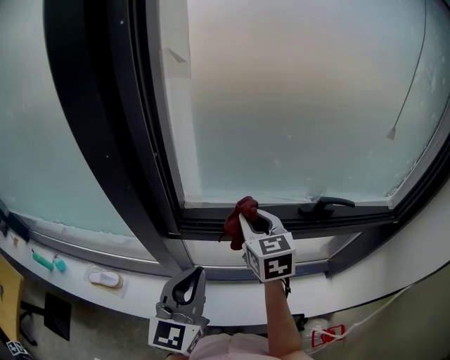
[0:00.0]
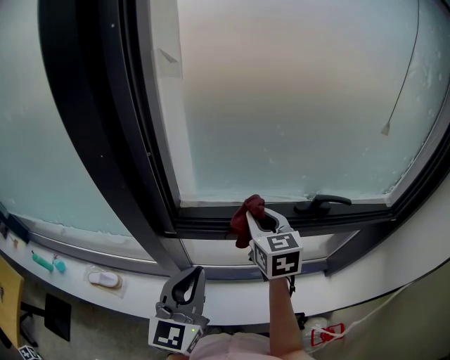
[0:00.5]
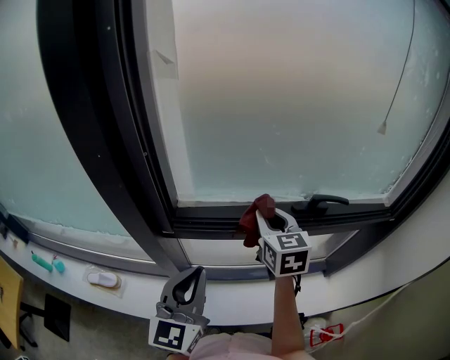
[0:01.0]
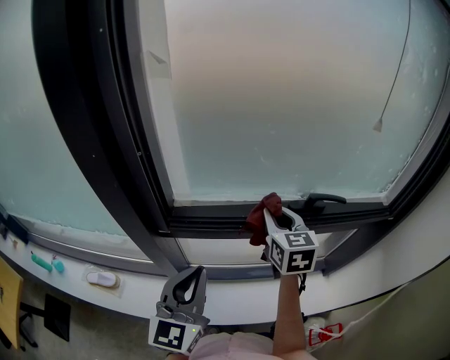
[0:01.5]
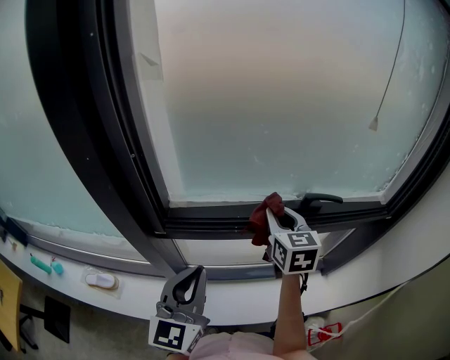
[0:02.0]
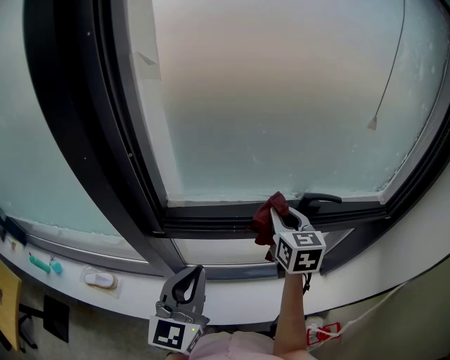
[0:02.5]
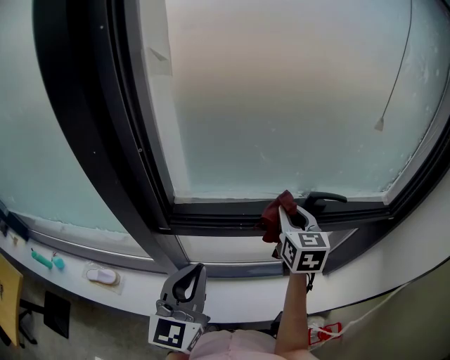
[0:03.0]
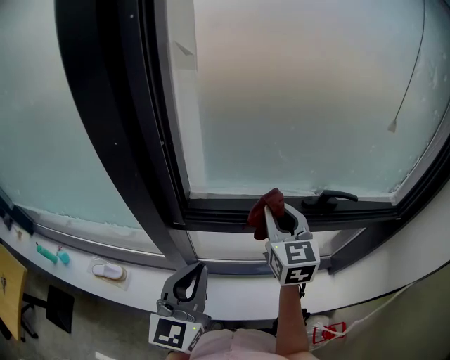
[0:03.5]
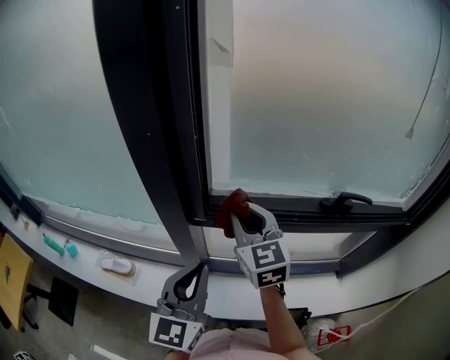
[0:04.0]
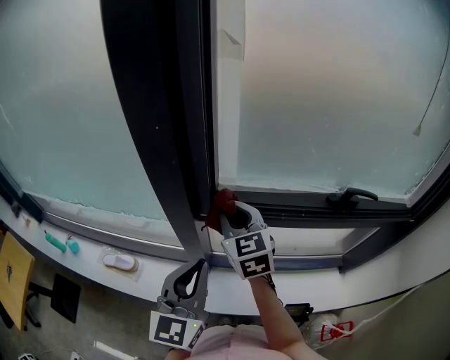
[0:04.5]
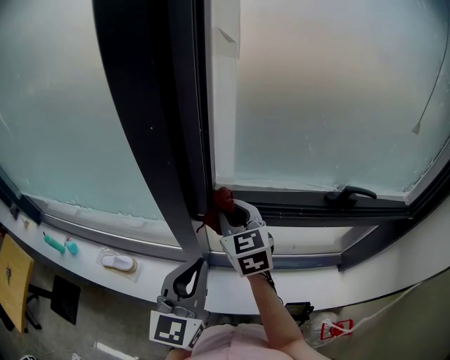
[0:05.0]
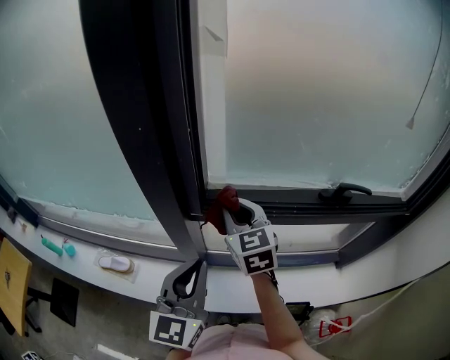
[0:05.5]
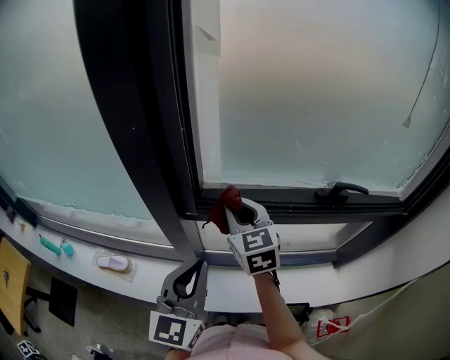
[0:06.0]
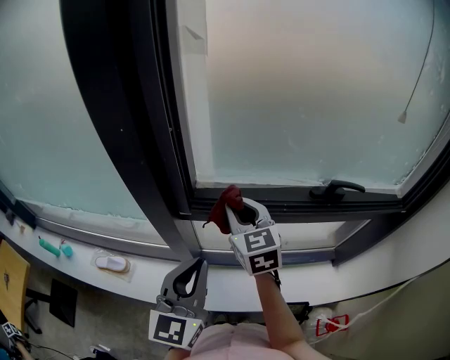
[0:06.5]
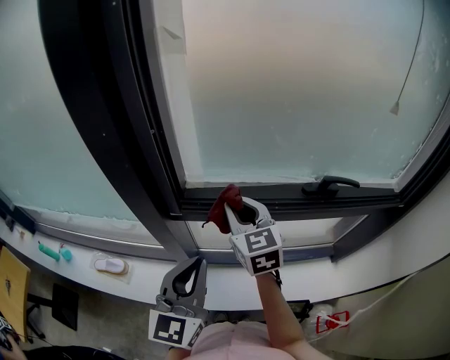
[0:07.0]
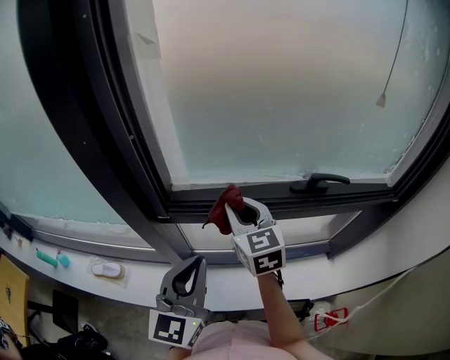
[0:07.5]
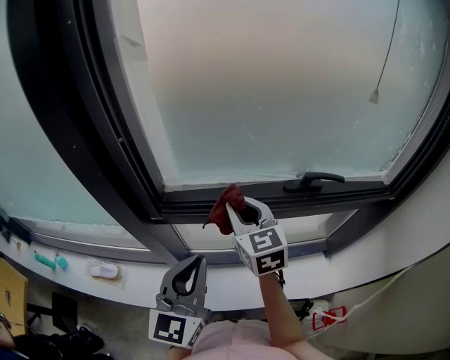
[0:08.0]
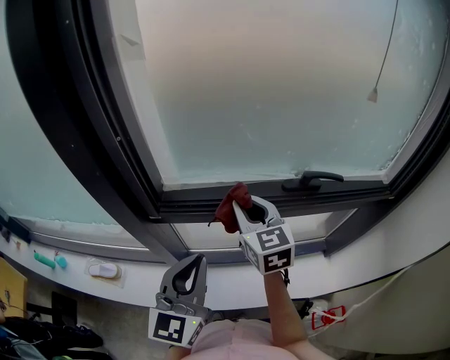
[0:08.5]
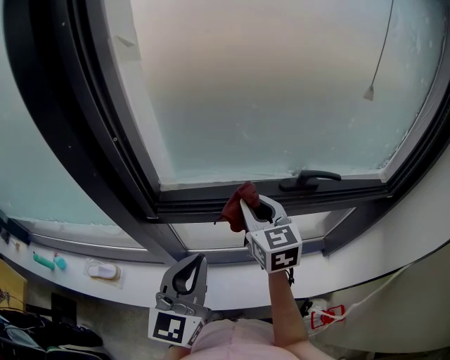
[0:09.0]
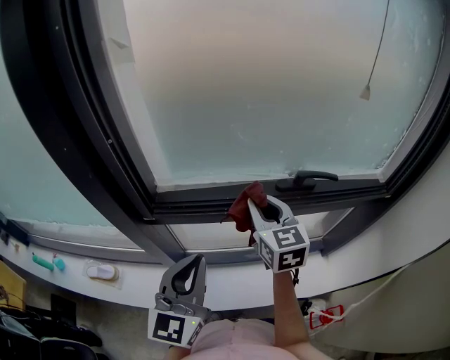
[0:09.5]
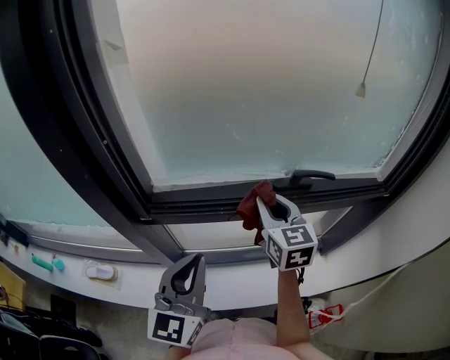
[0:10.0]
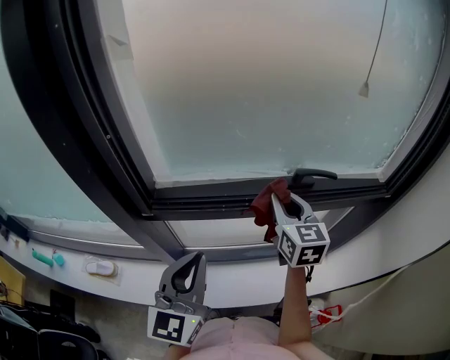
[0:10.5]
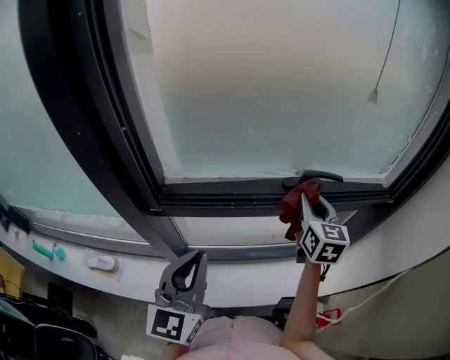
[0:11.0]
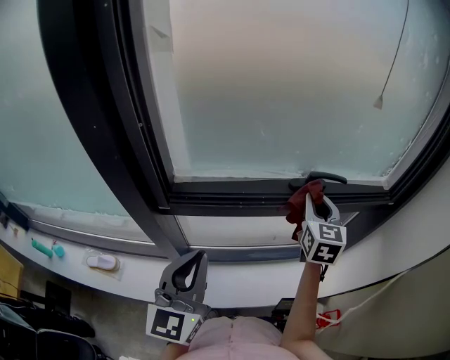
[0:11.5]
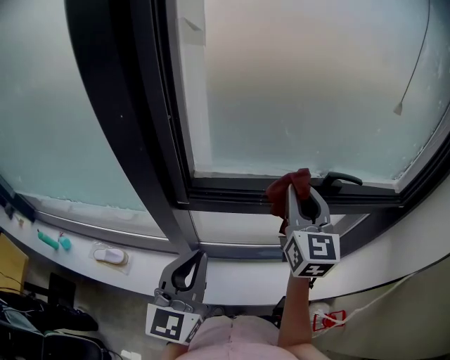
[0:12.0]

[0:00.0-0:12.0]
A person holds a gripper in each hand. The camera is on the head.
0:00.0 to 0:02.0: The right gripper is displaced to the right by roughly 10 cm.
0:02.0 to 0:04.0: The right gripper moves to the left, about 20 cm, and changes its angle by roughly 20 degrees, while the left gripper goes roughly 10 cm to the left.
0:04.0 to 0:06.0: The right gripper changes place by about 5 cm.
0:06.0 to 0:08.0: The grippers both shift to the right by some 10 cm.
0:08.0 to 0:10.0: The right gripper heads to the right, covering approximately 10 cm.
0:10.0 to 0:12.0: The right gripper travels upward by some 10 cm, and goes to the right and returns, approximately 10 cm each way. Meanwhile the left gripper is displaced to the left by approximately 10 cm.

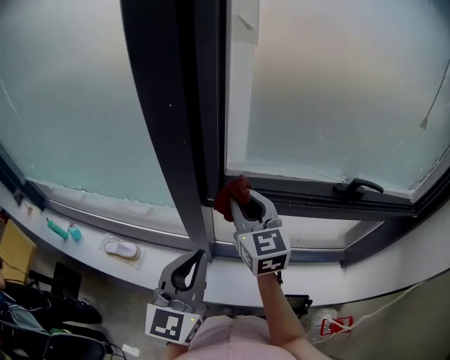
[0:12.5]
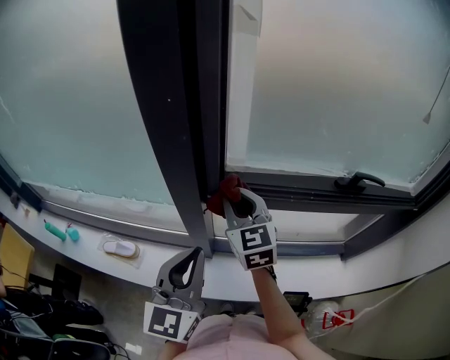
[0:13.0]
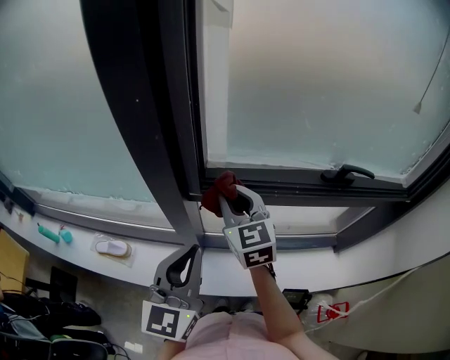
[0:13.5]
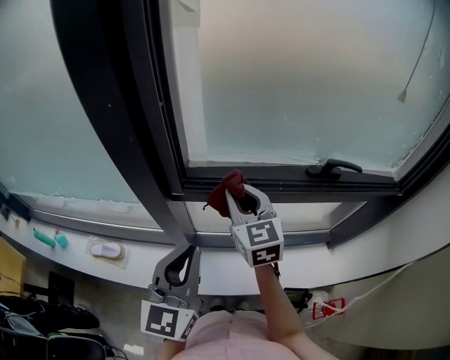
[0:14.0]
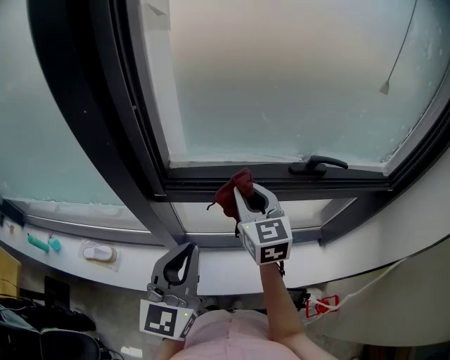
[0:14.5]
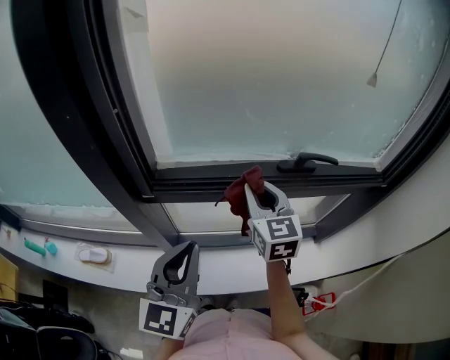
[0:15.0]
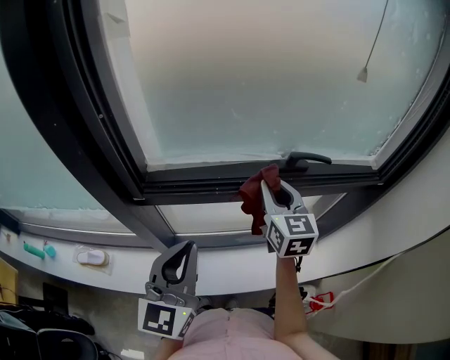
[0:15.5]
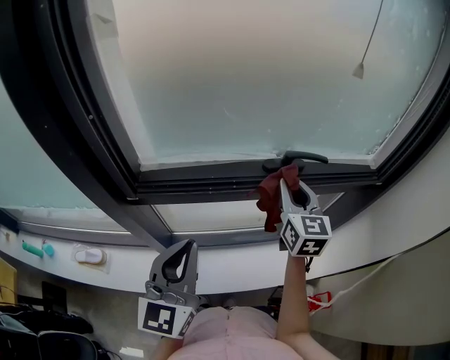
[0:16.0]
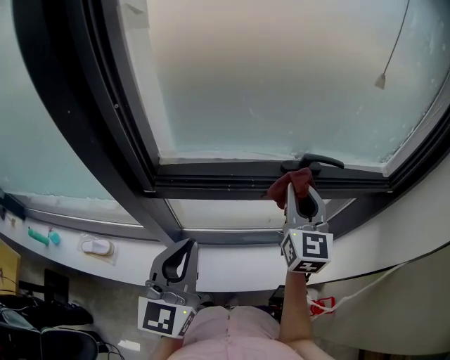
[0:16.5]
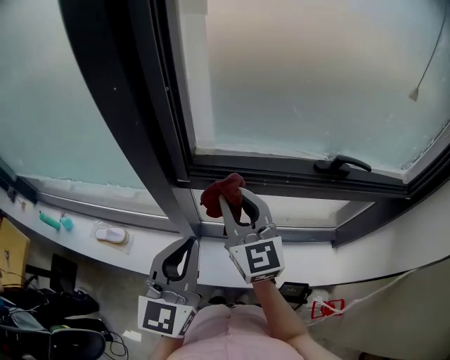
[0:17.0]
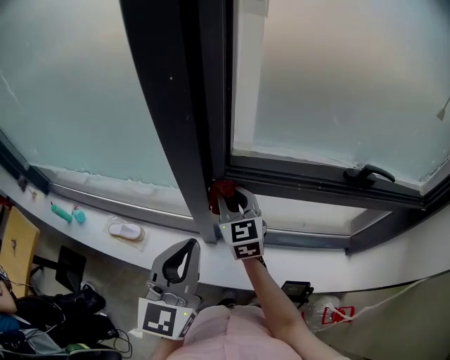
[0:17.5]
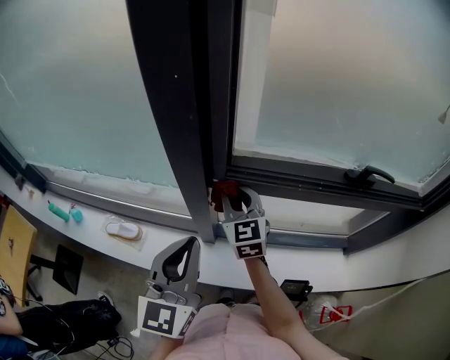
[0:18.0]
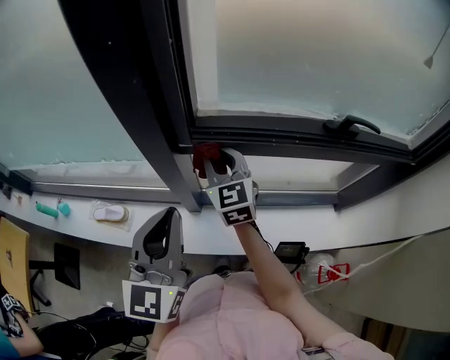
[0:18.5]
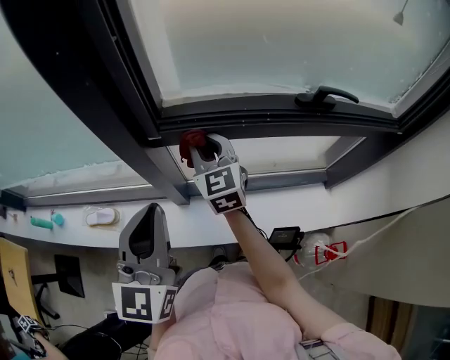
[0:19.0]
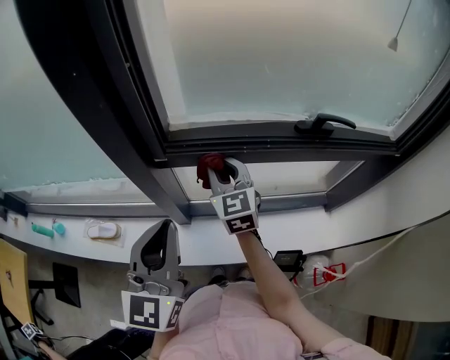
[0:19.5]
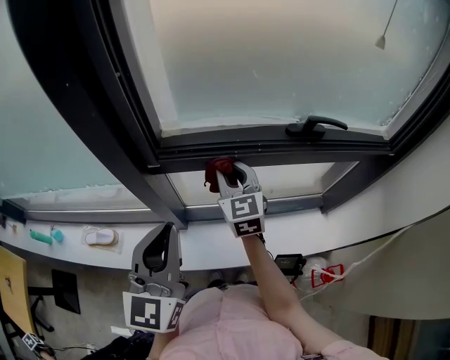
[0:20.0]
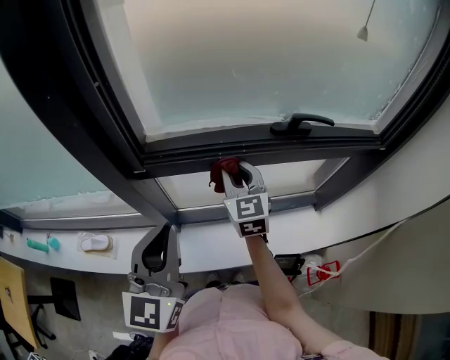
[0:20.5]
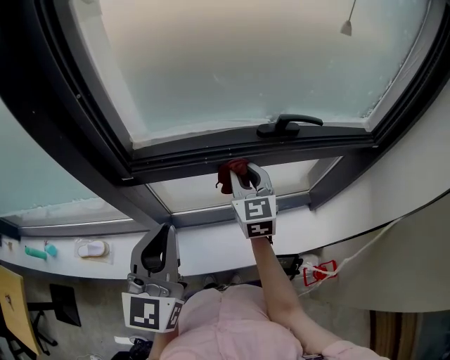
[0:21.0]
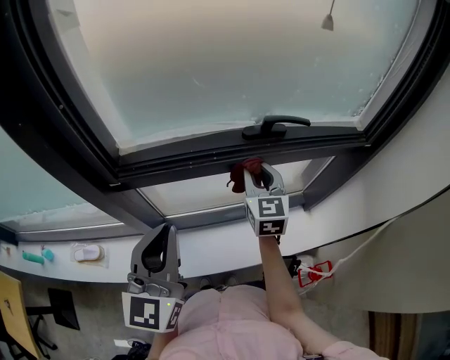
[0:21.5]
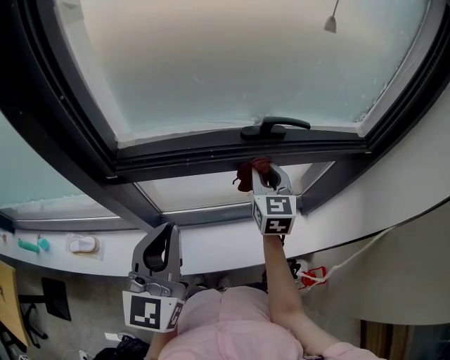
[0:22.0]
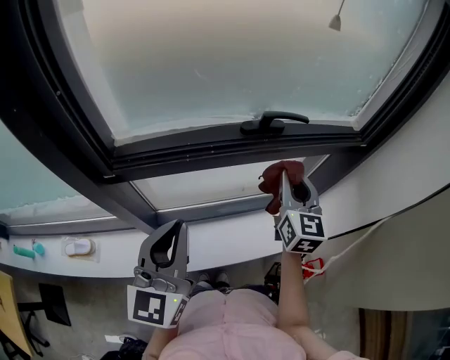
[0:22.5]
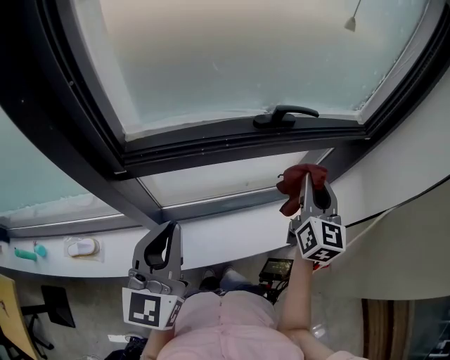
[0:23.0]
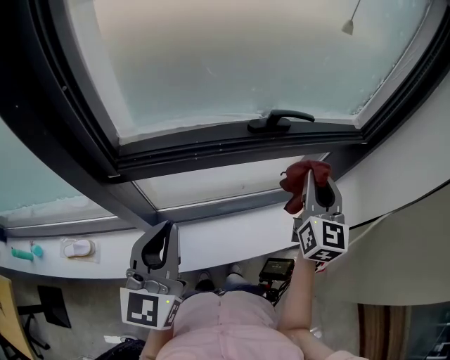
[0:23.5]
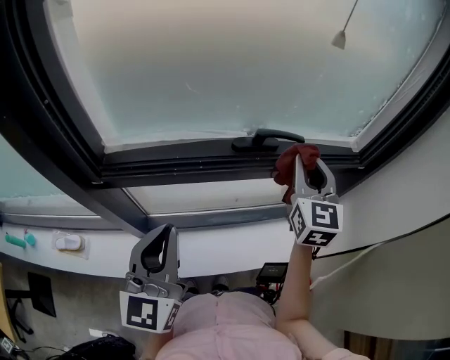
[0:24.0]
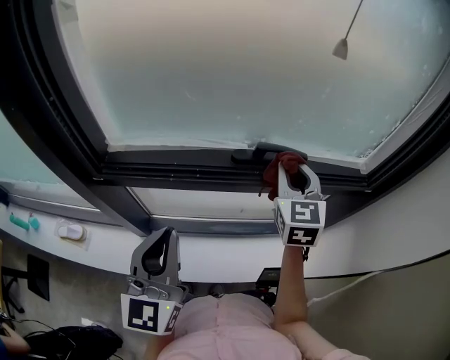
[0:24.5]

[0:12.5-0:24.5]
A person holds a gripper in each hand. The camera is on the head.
0:12.5 to 0:14.5: The right gripper shifts roughly 15 cm to the right, while the left gripper heads to the right, covering about 10 cm.
0:14.5 to 0:16.5: The right gripper shifts about 15 cm to the right.
0:16.5 to 0:18.5: The right gripper shifts approximately 30 cm to the left, and changes its angle by roughly 30 degrees. Meanwhile the left gripper shifts roughly 15 cm to the left.
0:18.5 to 0:20.5: The right gripper heads to the right, covering roughly 20 cm; the left gripper is displaced to the right by approximately 10 cm.
0:20.5 to 0:22.5: The right gripper moves to the right, some 25 cm, and swivels roughly 20 degrees. Meanwhile the left gripper moves to the right, roughly 10 cm.
0:22.5 to 0:24.5: The right gripper goes approximately 10 cm forward and upward, and turns by approximately 20 degrees. Meanwhile the left gripper changes place by approximately 5 cm.

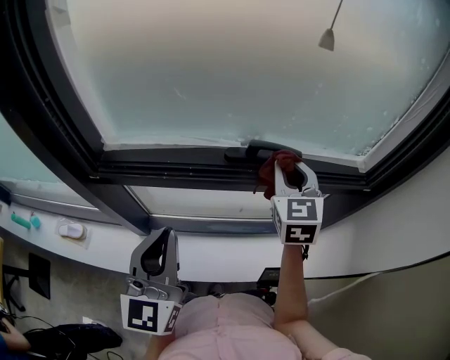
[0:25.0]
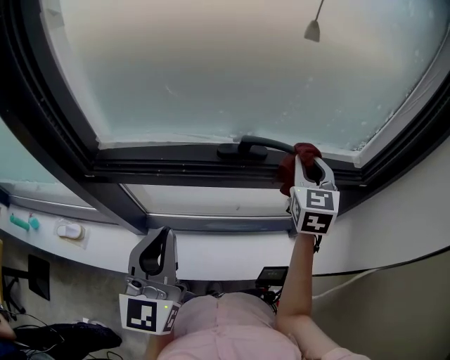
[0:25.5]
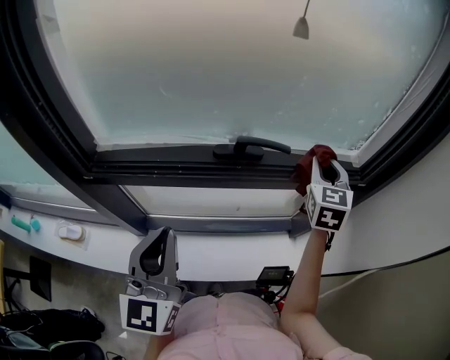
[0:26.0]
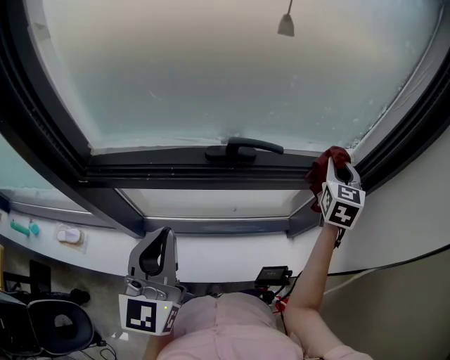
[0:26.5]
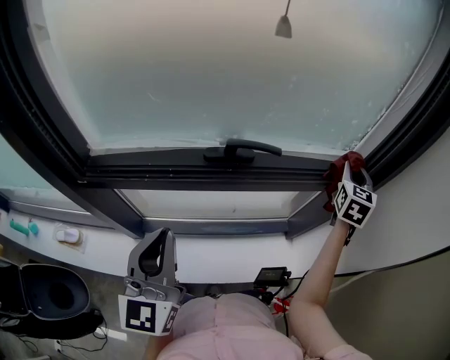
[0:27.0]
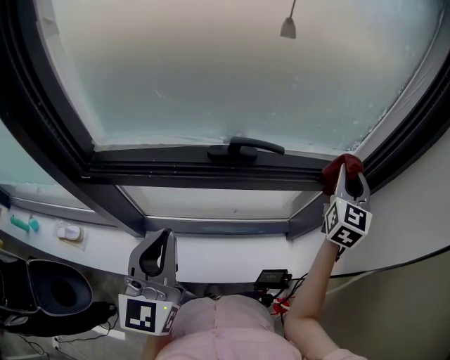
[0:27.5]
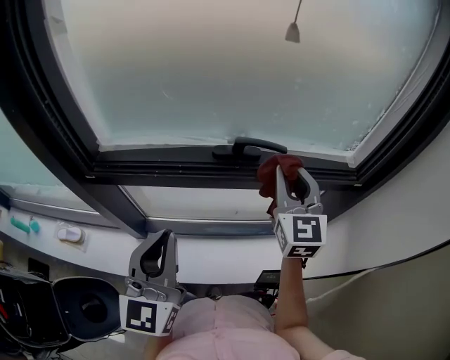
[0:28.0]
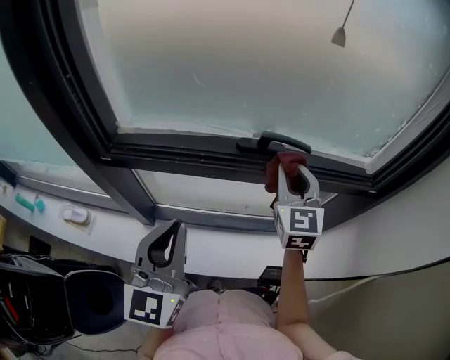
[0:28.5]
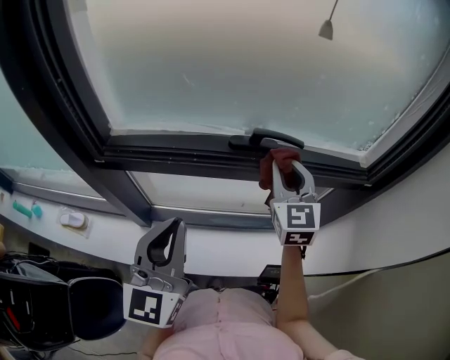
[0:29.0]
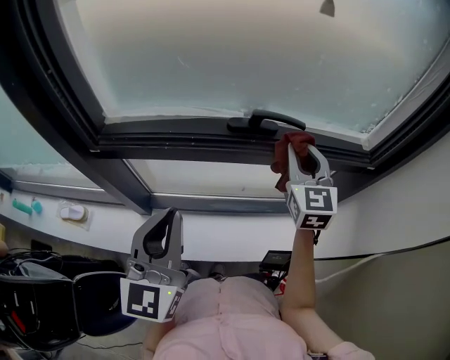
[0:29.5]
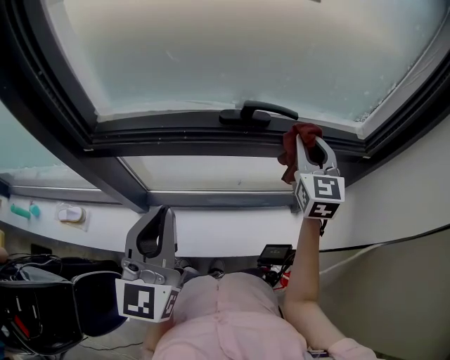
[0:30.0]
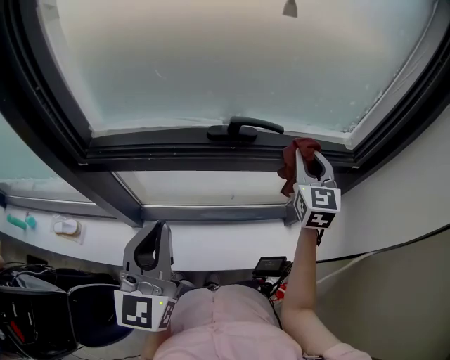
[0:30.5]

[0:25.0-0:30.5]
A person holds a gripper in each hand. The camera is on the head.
0:25.0 to 0:27.0: The right gripper moves to the right, about 25 cm, and swivels some 30 degrees.
0:27.0 to 0:28.5: The right gripper moves to the left, roughly 30 cm, and swivels some 30 degrees.
0:28.5 to 0:30.5: The right gripper shifts approximately 10 cm to the right.
